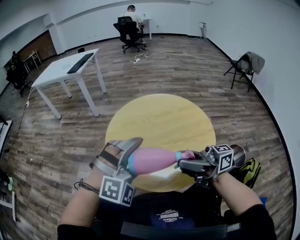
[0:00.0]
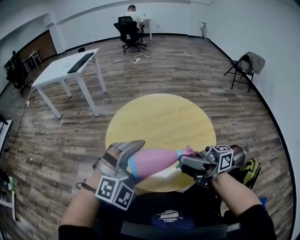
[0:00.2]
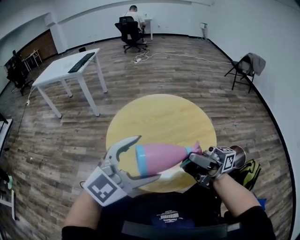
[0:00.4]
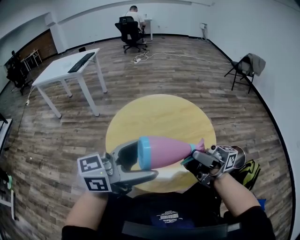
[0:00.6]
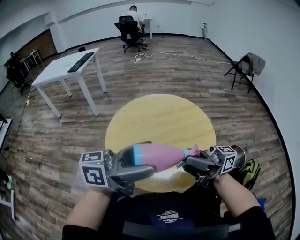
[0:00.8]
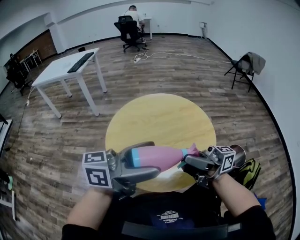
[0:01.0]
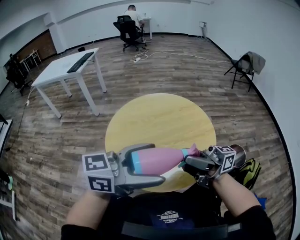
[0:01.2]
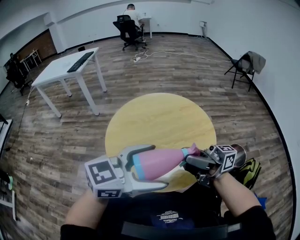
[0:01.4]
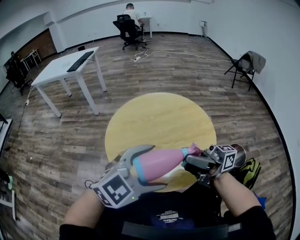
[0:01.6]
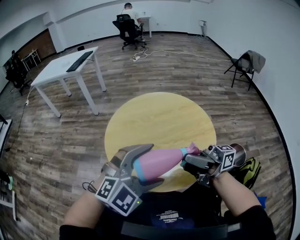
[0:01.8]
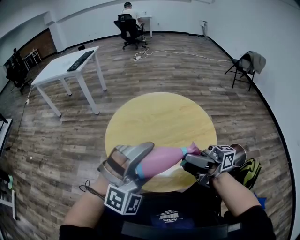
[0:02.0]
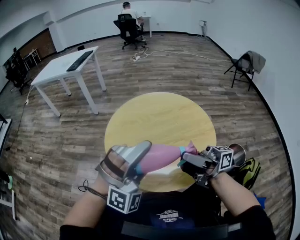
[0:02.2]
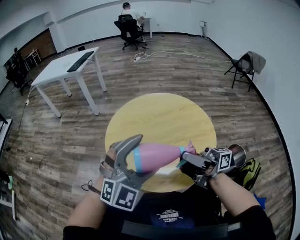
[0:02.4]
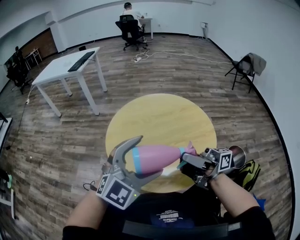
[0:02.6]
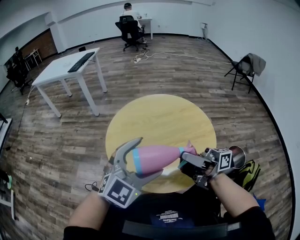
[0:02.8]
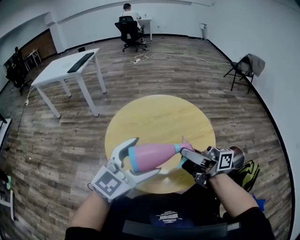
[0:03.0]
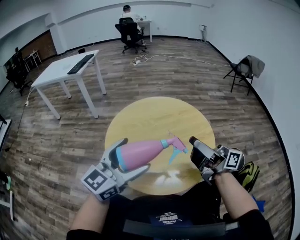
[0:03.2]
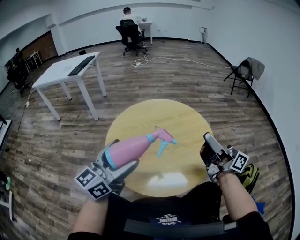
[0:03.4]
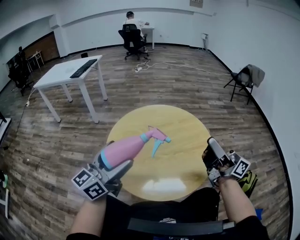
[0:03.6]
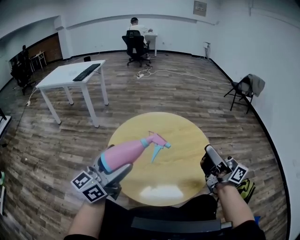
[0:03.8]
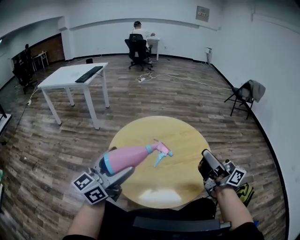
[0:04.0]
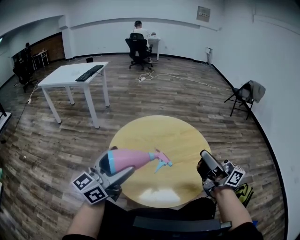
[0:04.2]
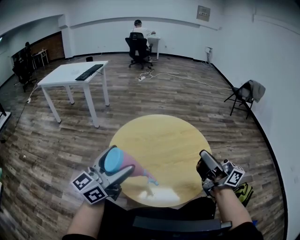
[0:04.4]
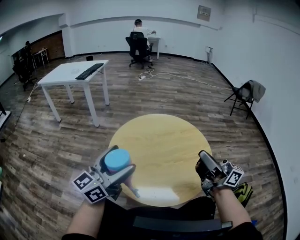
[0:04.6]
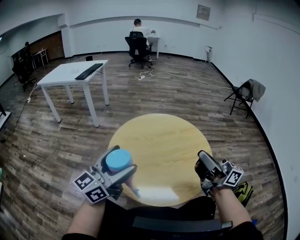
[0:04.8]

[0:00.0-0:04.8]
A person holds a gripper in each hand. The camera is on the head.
0:00.0 to 0:01.6: The left gripper moves approximately 10 cm upward and comes back, and swivels roughly 50 degrees.
0:01.6 to 0:03.2: The right gripper shifts by roughly 5 cm, and rotates about 20 degrees; the left gripper ends up some 10 cm from where it was, and rotates about 40 degrees.
0:03.2 to 0:04.8: The right gripper closes up, while the left gripper is displaced to the left by some 5 cm.

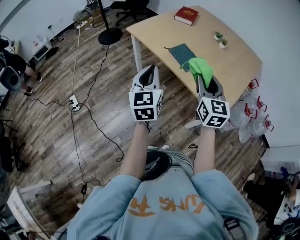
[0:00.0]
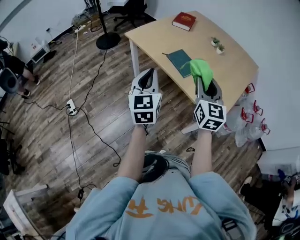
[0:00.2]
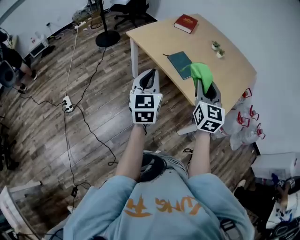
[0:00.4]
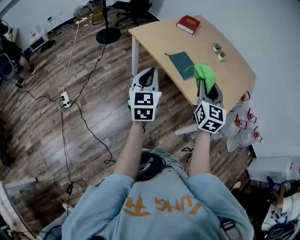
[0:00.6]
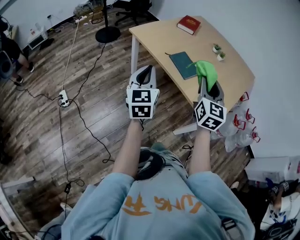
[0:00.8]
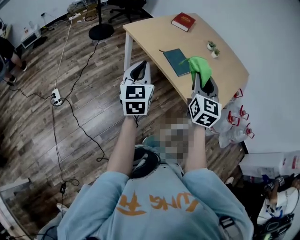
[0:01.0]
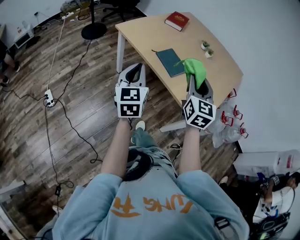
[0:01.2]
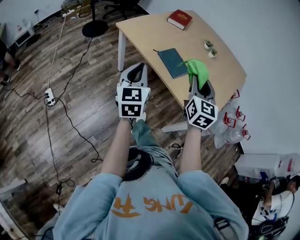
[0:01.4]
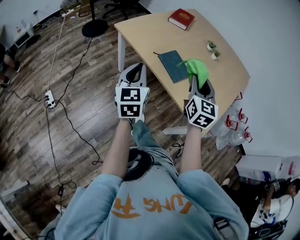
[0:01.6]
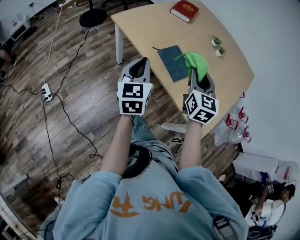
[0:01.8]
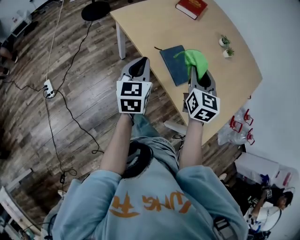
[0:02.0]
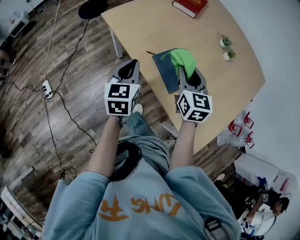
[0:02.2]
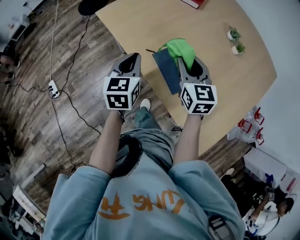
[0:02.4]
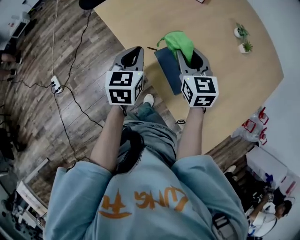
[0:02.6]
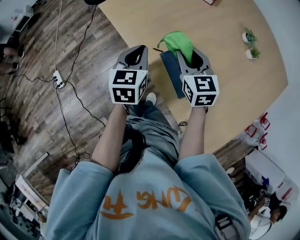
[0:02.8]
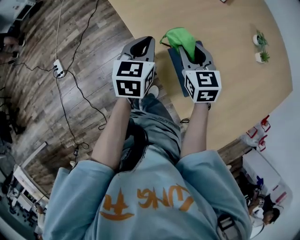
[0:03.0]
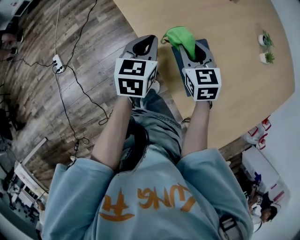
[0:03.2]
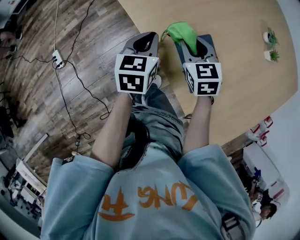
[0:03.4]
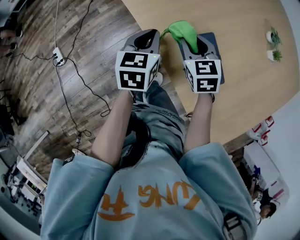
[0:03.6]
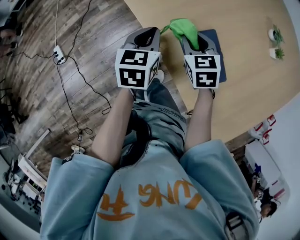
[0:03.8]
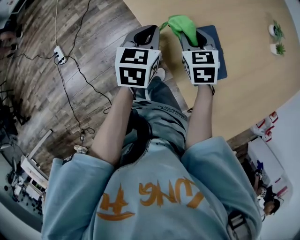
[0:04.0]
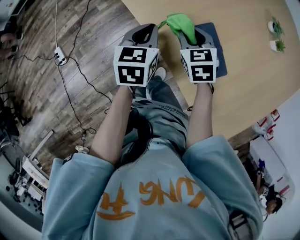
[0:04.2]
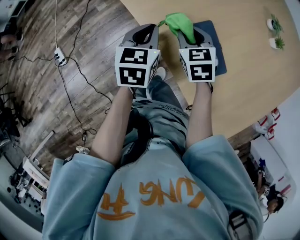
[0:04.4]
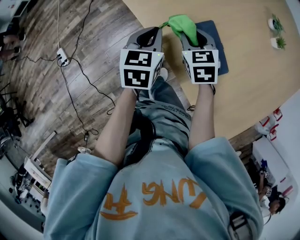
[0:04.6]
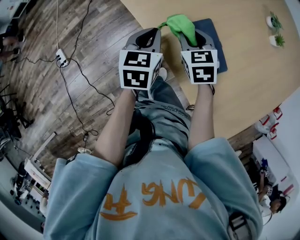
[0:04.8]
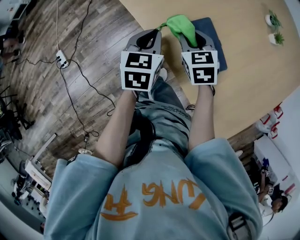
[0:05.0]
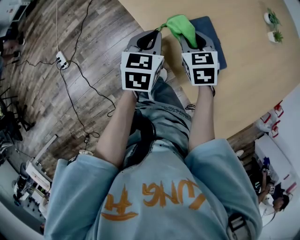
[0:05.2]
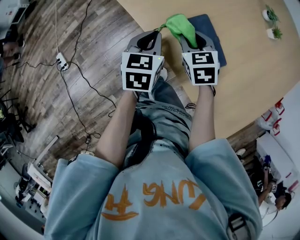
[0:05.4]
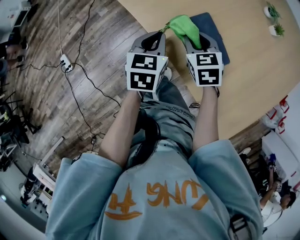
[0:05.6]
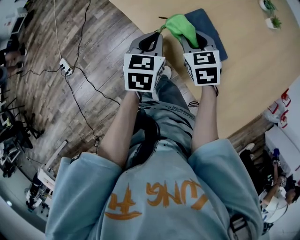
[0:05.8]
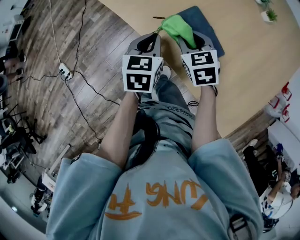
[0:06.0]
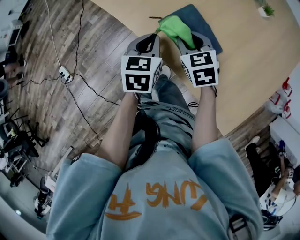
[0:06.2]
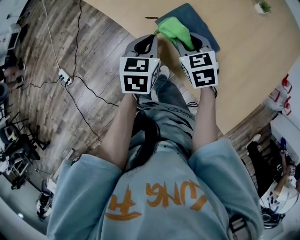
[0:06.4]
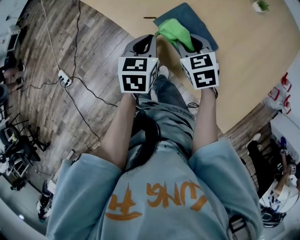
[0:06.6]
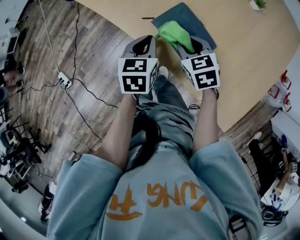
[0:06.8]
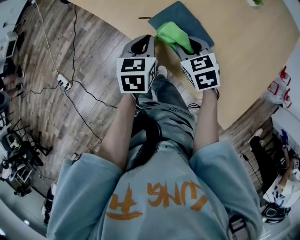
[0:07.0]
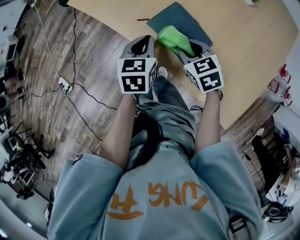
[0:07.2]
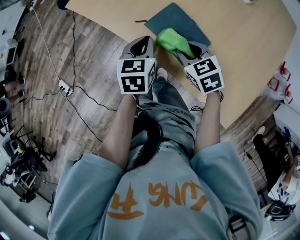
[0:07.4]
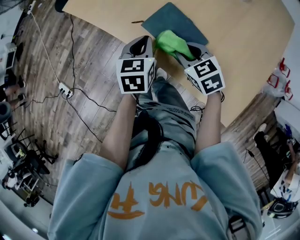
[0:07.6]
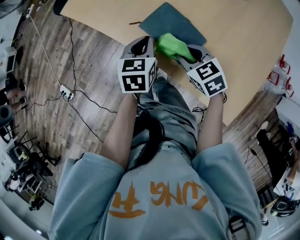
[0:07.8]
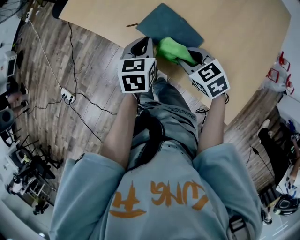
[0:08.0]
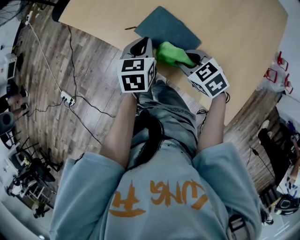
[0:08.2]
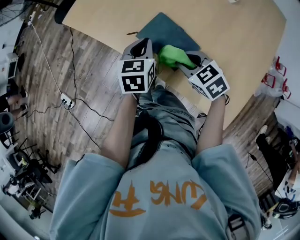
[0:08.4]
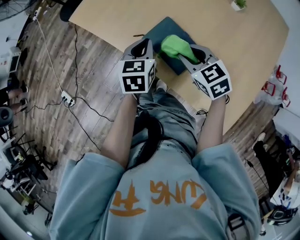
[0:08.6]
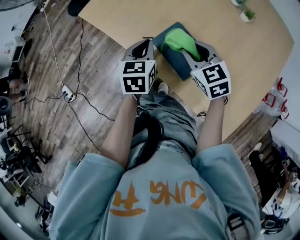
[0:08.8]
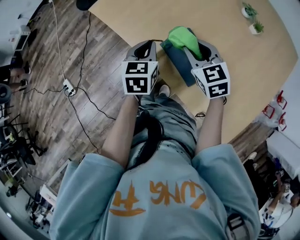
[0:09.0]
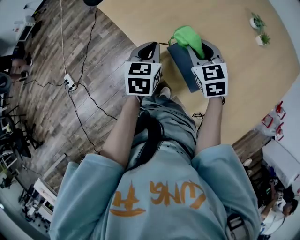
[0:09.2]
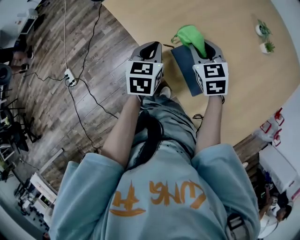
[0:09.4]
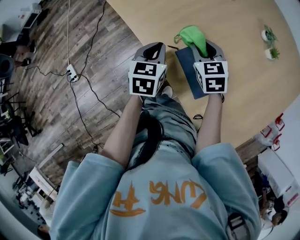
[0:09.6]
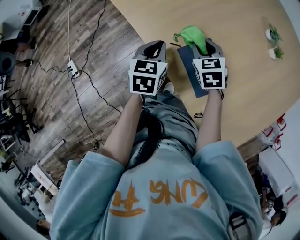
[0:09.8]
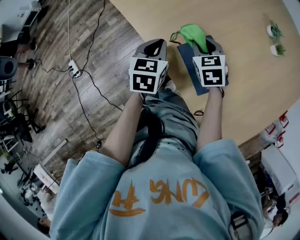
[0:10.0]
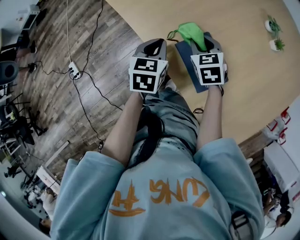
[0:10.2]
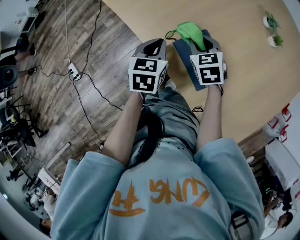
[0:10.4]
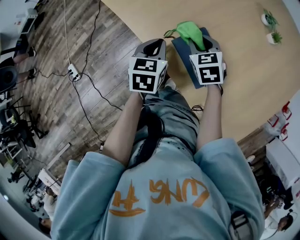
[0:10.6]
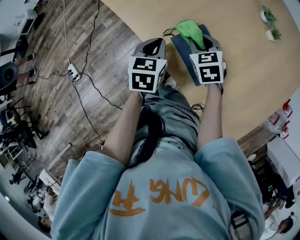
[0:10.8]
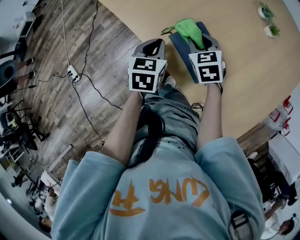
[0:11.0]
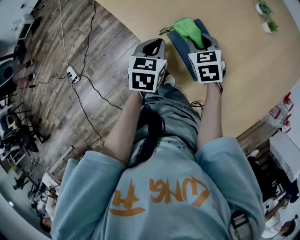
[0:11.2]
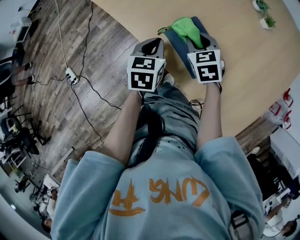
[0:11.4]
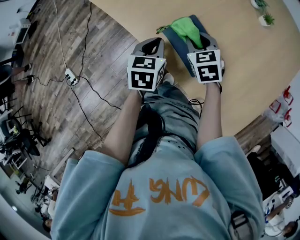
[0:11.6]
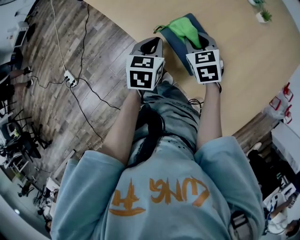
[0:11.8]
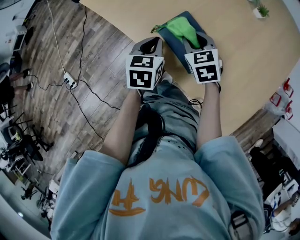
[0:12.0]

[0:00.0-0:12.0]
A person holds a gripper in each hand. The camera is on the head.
0:00.0 to 0:01.6: The two grippers go approximately 10 cm forward.
0:01.6 to 0:03.0: Both grippers move forward and downward, approximately 35 cm. The left gripper changes its angle by about 20 degrees; the right gripper swivels approximately 40 degrees.
0:03.0 to 0:04.4: The right gripper travels downward by roughly 10 cm, while the left gripper moves downward, approximately 5 cm.
0:04.4 to 0:06.0: Both grippers move backward, roughly 5 cm.
0:06.0 to 0:07.6: The right gripper heads backward, covering approximately 5 cm.
0:07.6 to 0:09.0: The left gripper is displaced forward by some 5 cm. Meanwhile the right gripper shifts some 15 cm forward and upward.
0:09.0 to 0:10.4: The right gripper goes some 10 cm downward and forward.
0:10.4 to 0:12.0: The right gripper travels backward by approximately 5 cm; the left gripper ends up about 5 cm from where it was.

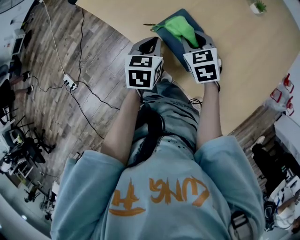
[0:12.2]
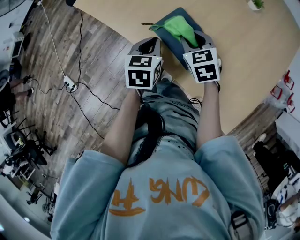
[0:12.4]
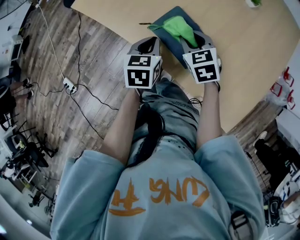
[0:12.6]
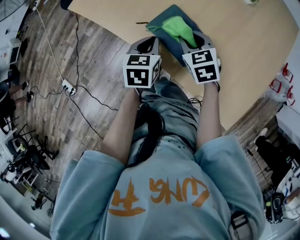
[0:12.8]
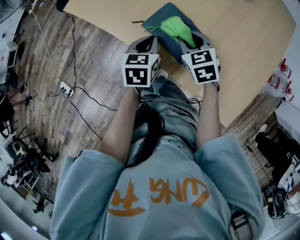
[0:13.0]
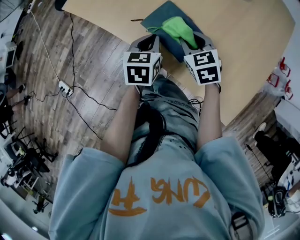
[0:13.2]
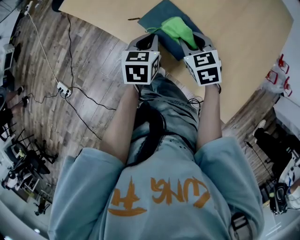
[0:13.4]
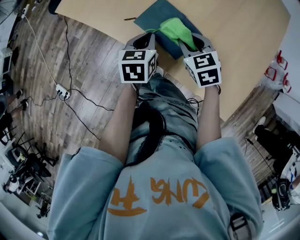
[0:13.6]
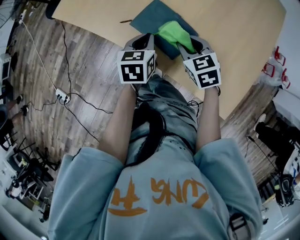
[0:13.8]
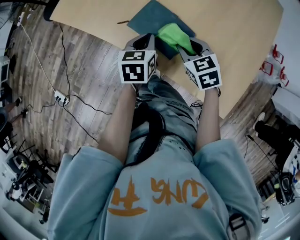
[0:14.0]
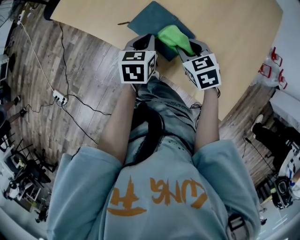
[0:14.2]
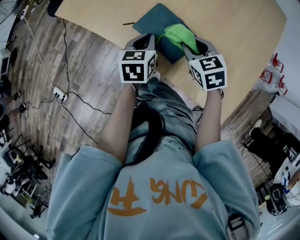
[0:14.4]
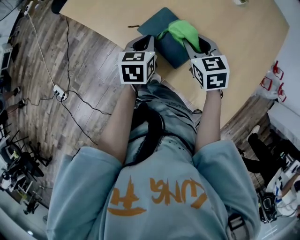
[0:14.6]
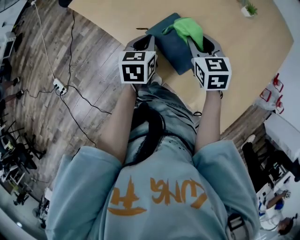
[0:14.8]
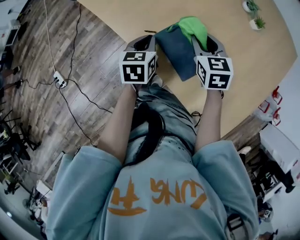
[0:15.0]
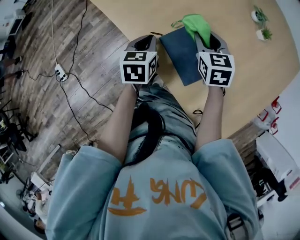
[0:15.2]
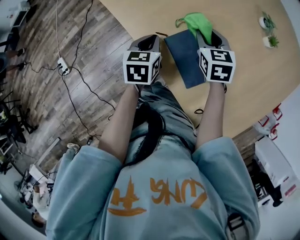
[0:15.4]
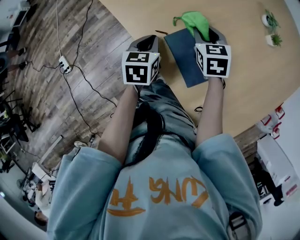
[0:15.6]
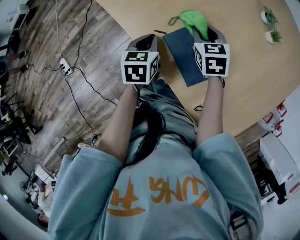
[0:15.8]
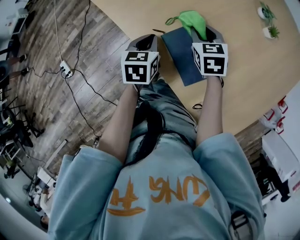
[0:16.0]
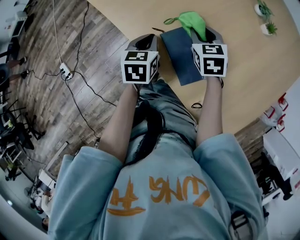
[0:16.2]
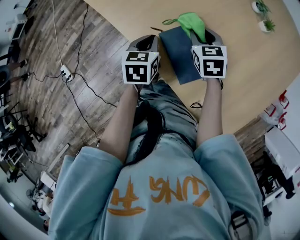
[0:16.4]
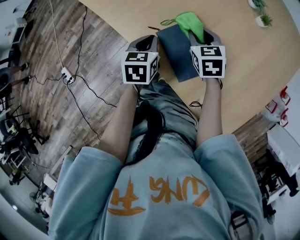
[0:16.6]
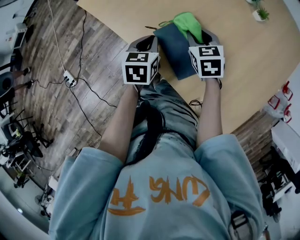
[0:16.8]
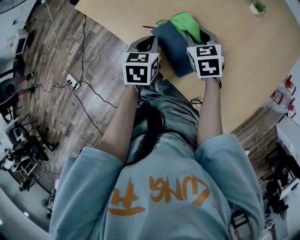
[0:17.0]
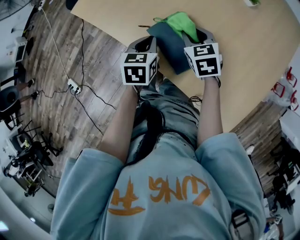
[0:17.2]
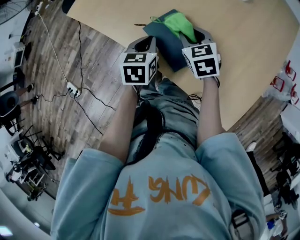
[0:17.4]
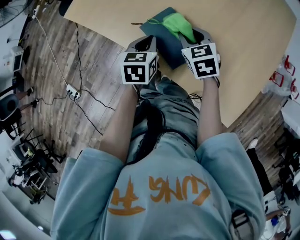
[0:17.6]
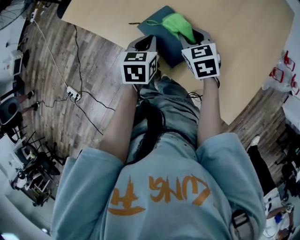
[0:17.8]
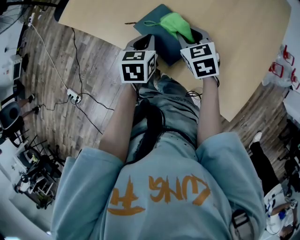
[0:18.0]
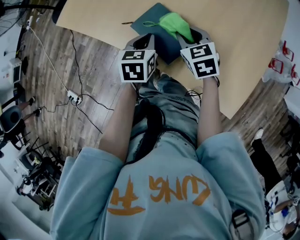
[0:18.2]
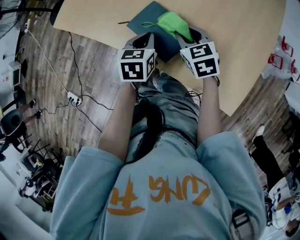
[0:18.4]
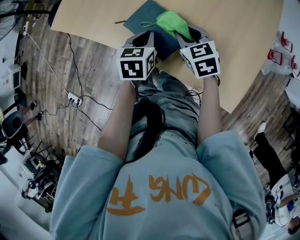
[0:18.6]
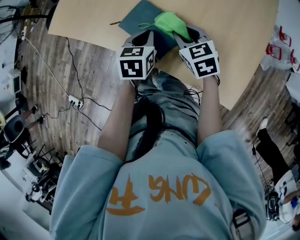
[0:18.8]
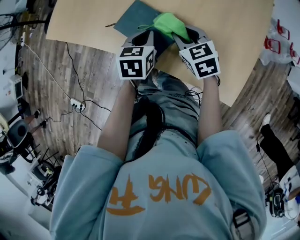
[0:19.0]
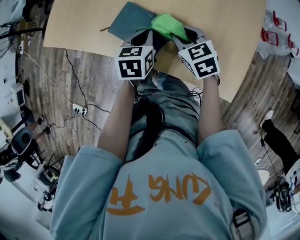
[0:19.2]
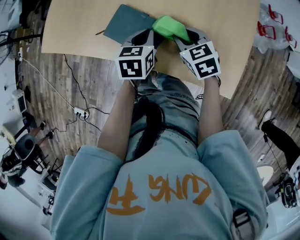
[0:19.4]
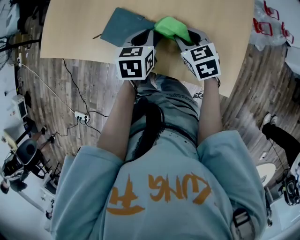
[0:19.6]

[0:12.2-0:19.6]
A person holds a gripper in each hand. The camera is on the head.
0:12.2 to 0:13.6: The right gripper travels backward by approximately 5 cm.
0:13.6 to 0:15.2: The left gripper moves to the left and forward, about 10 cm, while the right gripper moves forward, about 15 cm.
0:15.2 to 0:16.6: The grippers move only a little.
0:16.6 to 0:18.2: The left gripper goes roughly 10 cm to the right; the right gripper shifts approximately 10 cm backward and to the right.
0:18.2 to 0:19.6: The right gripper travels to the right and backward by some 15 cm. Meanwhile the left gripper goes roughly 10 cm to the right.
